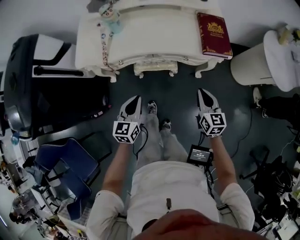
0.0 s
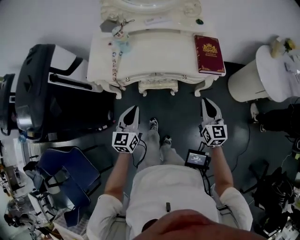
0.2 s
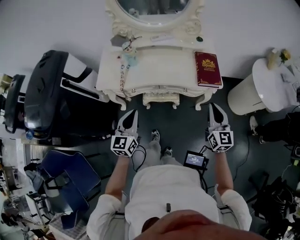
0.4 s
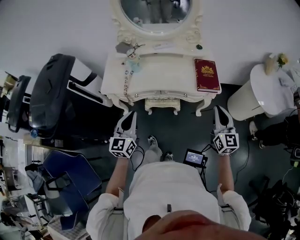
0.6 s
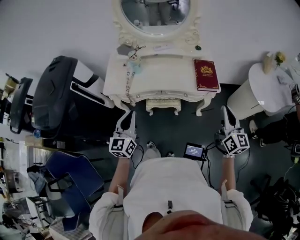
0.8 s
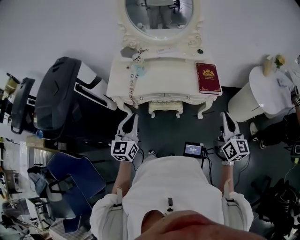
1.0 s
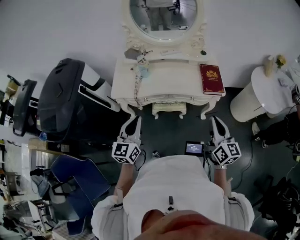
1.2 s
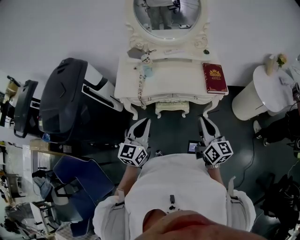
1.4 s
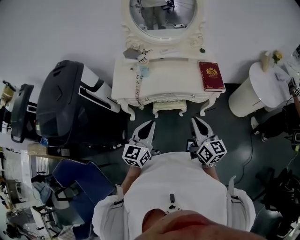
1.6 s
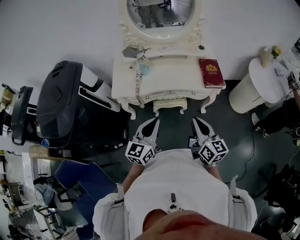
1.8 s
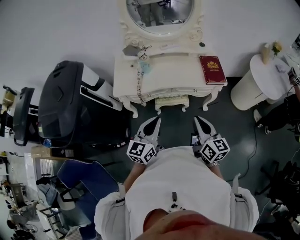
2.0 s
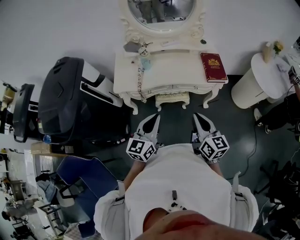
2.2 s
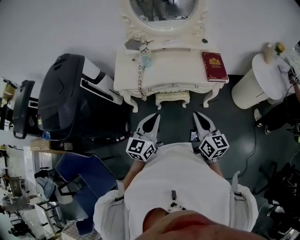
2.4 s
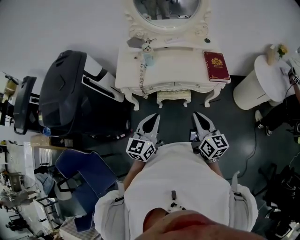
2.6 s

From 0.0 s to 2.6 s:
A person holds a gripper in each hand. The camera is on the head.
From 0.0 s to 1.2 s: The two grippers go roughly 30 cm upward. The right gripper turns by approximately 20 degrees.
From 1.2 s to 2.6 s: The right gripper heads to the left, covering approximately 15 cm; the left gripper changes place by some 5 cm.

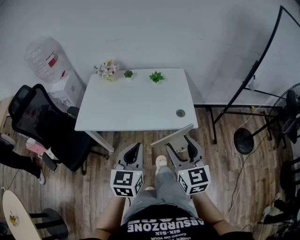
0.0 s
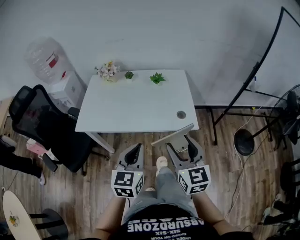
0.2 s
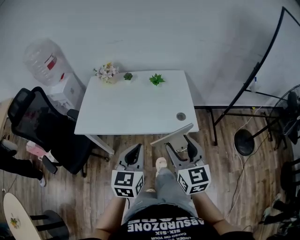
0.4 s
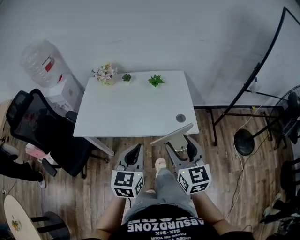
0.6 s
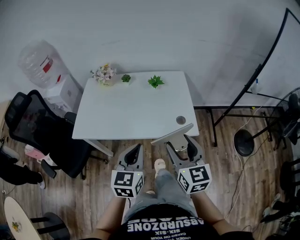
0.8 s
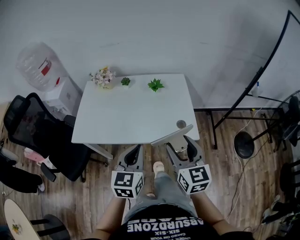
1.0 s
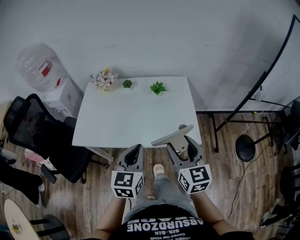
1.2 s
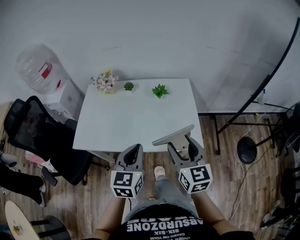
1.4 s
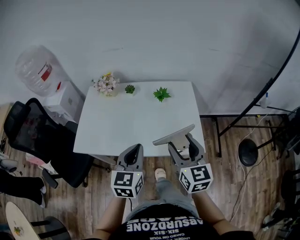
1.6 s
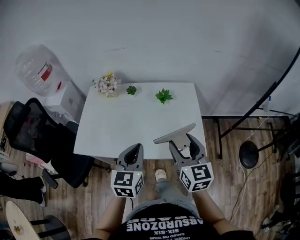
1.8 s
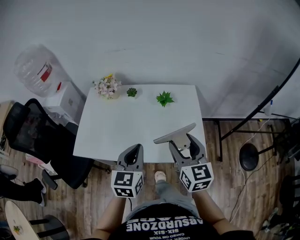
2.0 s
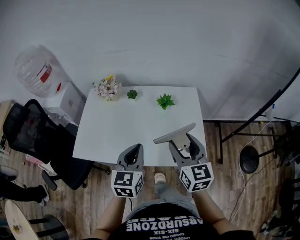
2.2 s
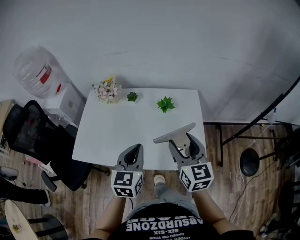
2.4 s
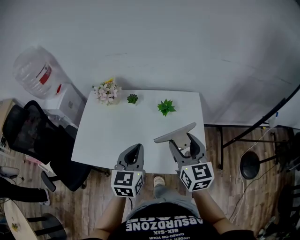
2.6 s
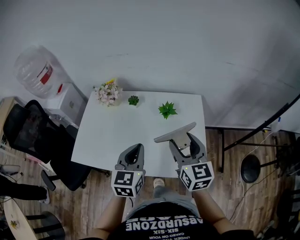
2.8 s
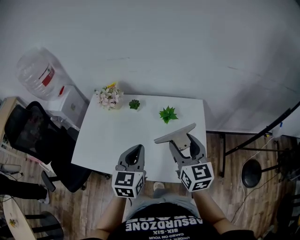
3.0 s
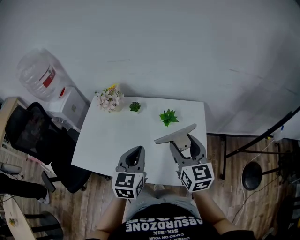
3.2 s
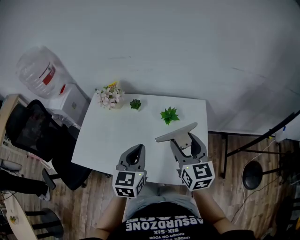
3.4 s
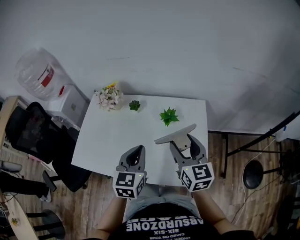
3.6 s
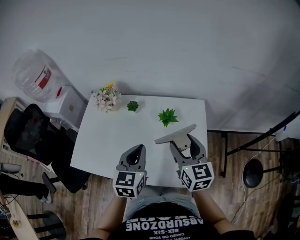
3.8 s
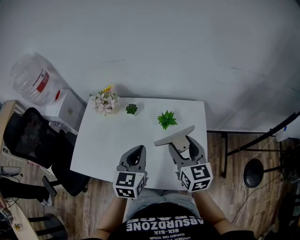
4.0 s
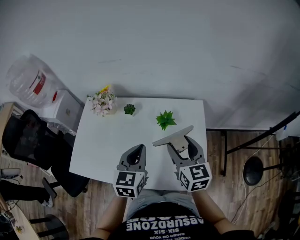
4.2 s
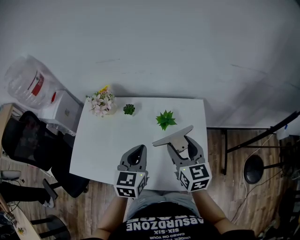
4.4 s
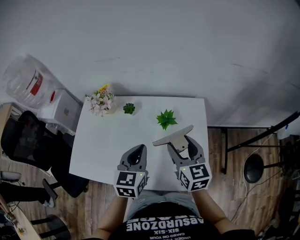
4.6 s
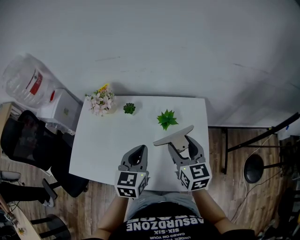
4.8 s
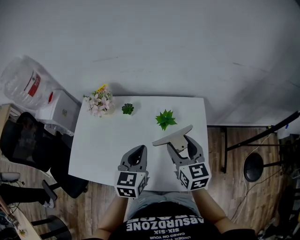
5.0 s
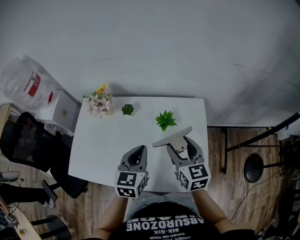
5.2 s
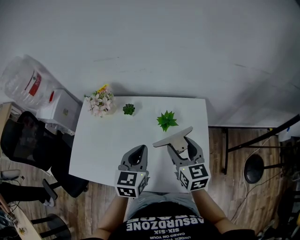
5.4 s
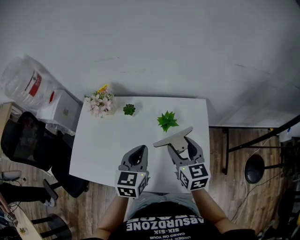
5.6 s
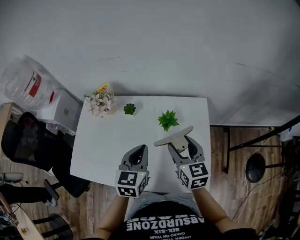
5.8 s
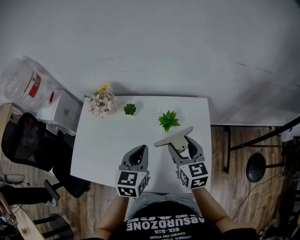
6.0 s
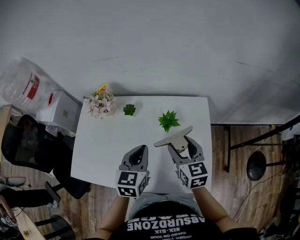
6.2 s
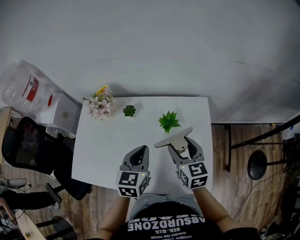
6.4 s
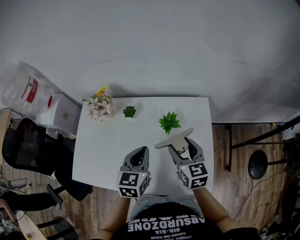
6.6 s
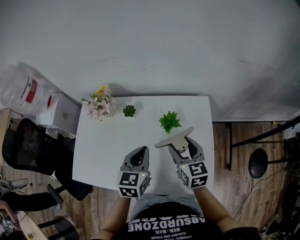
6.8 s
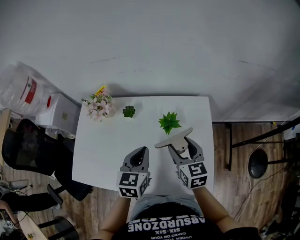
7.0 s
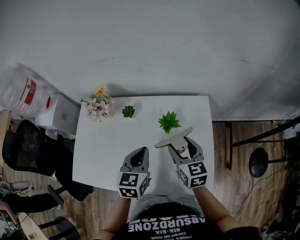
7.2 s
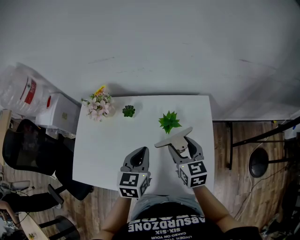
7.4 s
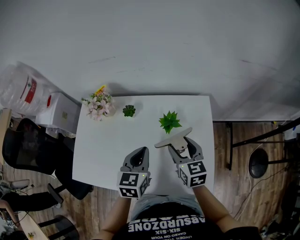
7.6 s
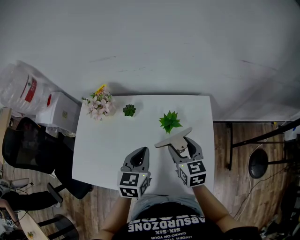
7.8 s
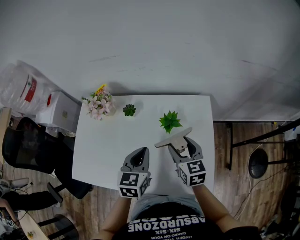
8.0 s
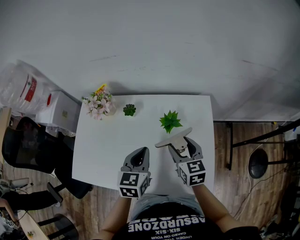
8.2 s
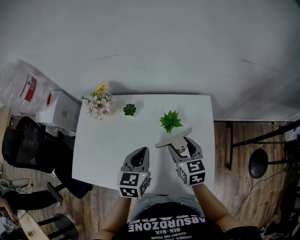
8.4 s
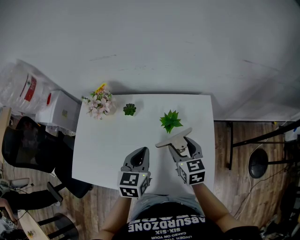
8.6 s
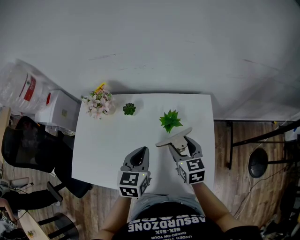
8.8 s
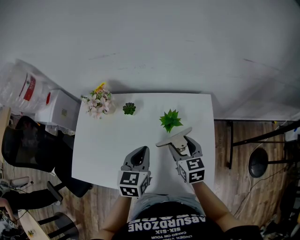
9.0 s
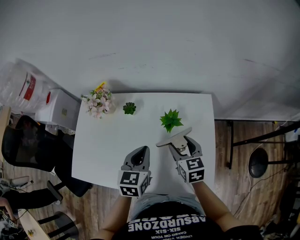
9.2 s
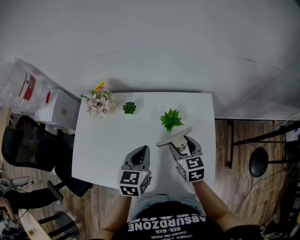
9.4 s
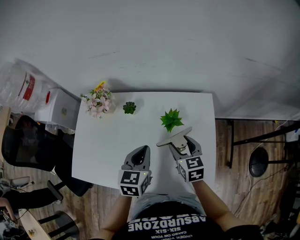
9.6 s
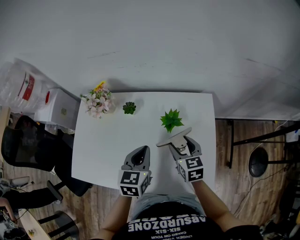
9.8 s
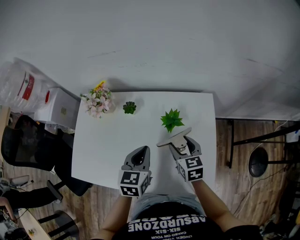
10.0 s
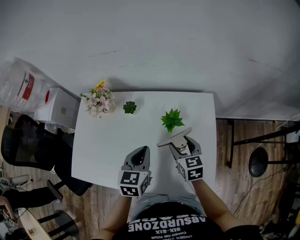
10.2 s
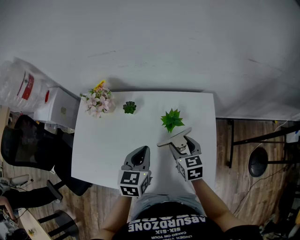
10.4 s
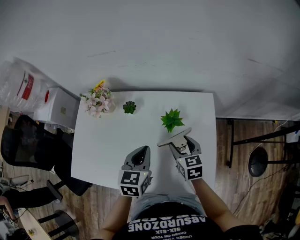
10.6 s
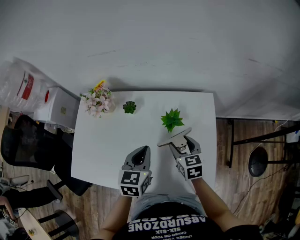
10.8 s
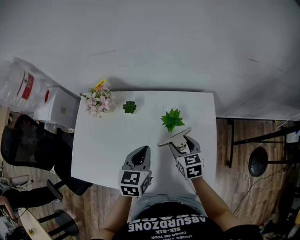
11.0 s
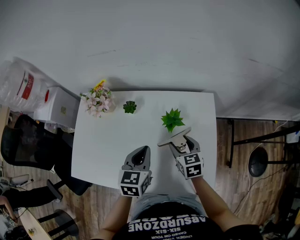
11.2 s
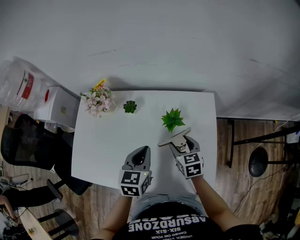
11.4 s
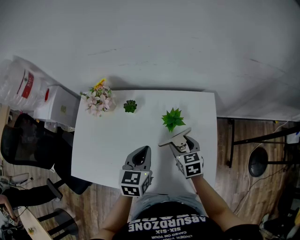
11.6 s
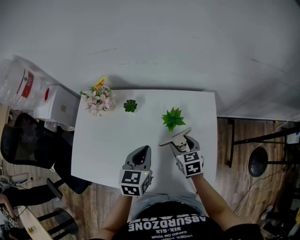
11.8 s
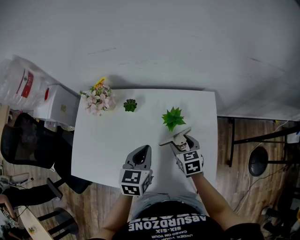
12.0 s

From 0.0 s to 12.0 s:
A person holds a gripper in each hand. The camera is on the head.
From 0.0 s to 1.6 s: The grippers both shift forward by roughly 20 cm.
From 1.6 s to 3.0 s: Both grippers move forward, approximately 15 cm.
From 3.0 s to 4.4 s: Both grippers move forward, about 5 cm.
From 4.4 s to 6.0 s: The right gripper moves some 5 cm.
From 6.0 s to 7.6 s: There are only small adjustments of the grippers.
From 7.6 s to 9.0 s: There are only small adjustments of the grippers.
From 9.0 s to 10.4 s: The grippers stay close to where they were, moving slightly.
From 10.4 s to 12.0 s: The grippers make only small movements.

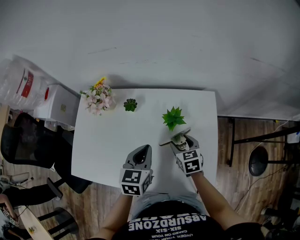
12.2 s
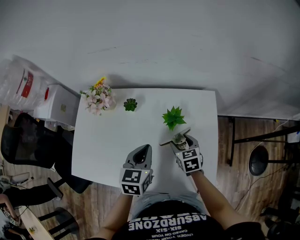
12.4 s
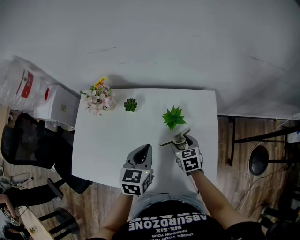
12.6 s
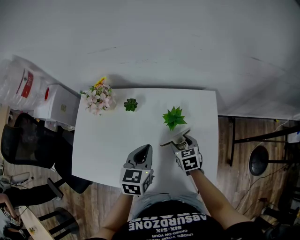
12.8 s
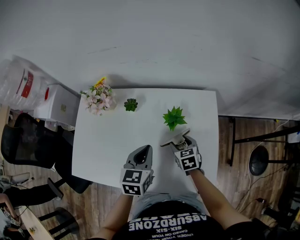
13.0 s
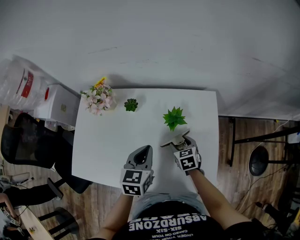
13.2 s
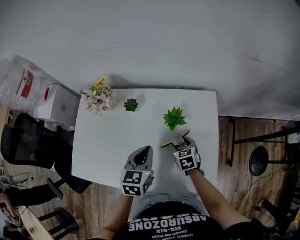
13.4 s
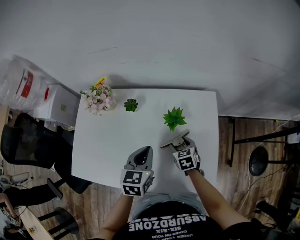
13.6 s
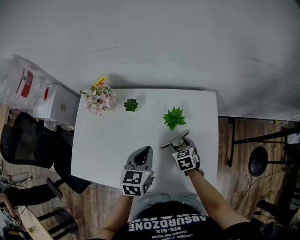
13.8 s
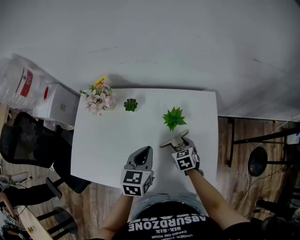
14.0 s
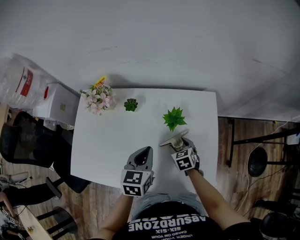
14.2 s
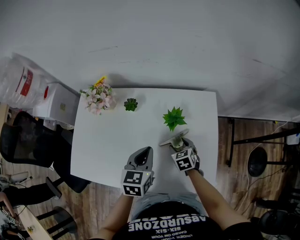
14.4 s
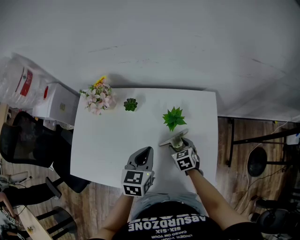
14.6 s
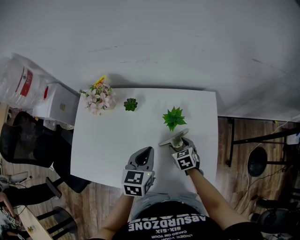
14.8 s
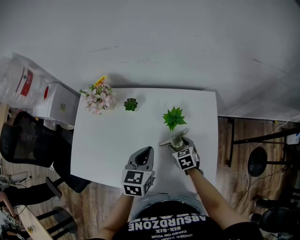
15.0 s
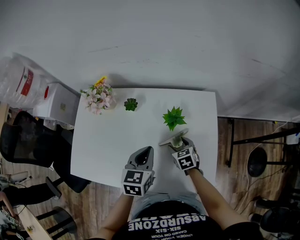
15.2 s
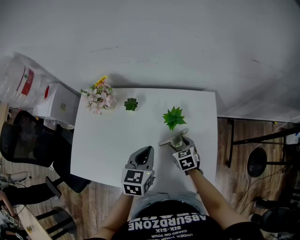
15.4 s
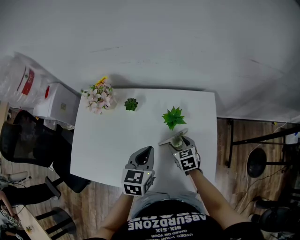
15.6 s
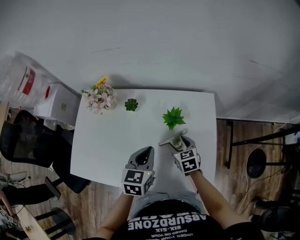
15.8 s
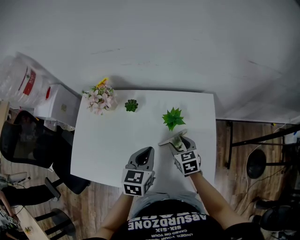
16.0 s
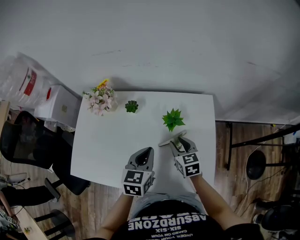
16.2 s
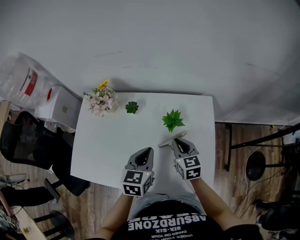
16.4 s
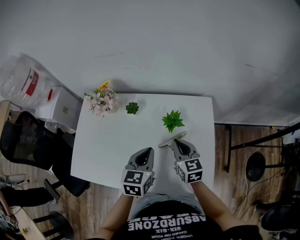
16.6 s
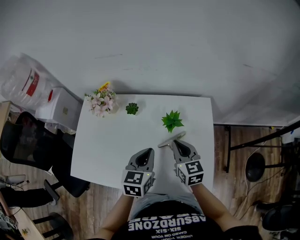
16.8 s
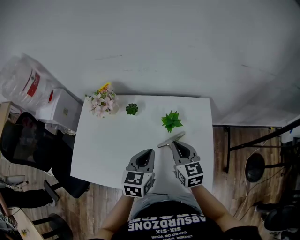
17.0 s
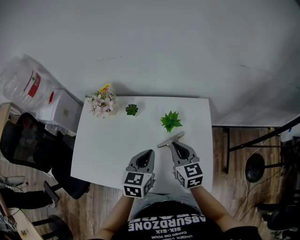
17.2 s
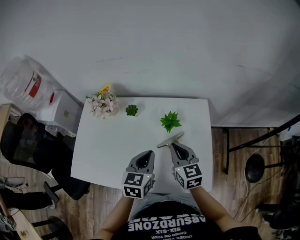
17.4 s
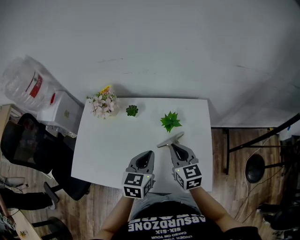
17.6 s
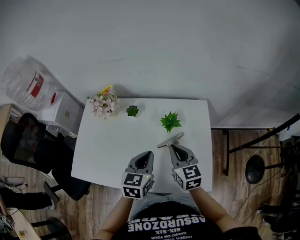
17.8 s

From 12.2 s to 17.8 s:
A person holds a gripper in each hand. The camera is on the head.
From 12.2 s to 13.6 s: The right gripper goes some 5 cm downward.
From 13.6 s to 15.0 s: There are only small adjustments of the grippers.
From 15.0 s to 16.4 s: The right gripper travels upward by some 15 cm, turns by some 20 degrees, and closes.
From 16.4 s to 17.8 s: The right gripper is displaced upward and backward by roughly 10 cm.

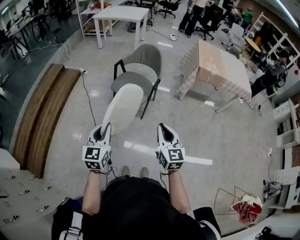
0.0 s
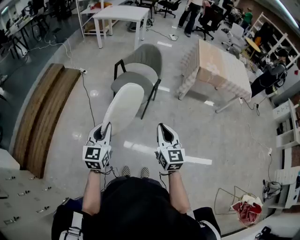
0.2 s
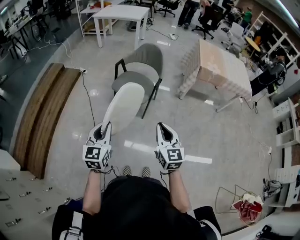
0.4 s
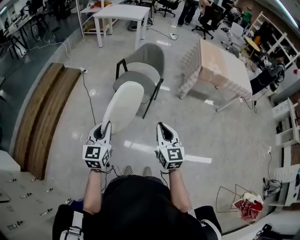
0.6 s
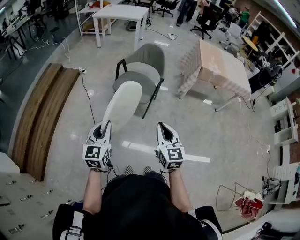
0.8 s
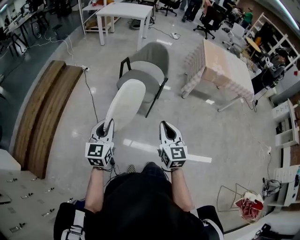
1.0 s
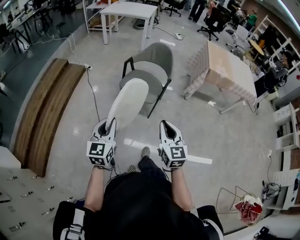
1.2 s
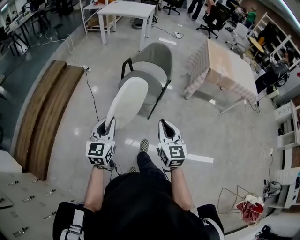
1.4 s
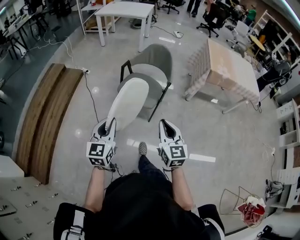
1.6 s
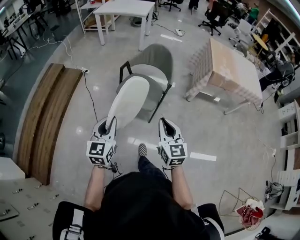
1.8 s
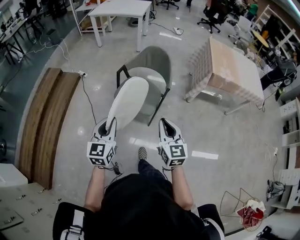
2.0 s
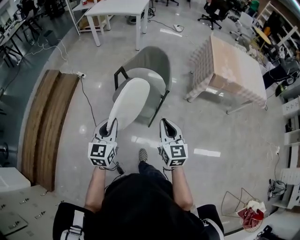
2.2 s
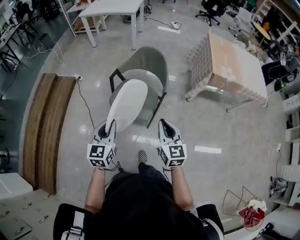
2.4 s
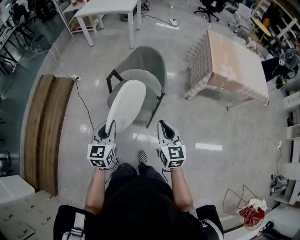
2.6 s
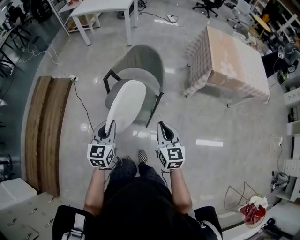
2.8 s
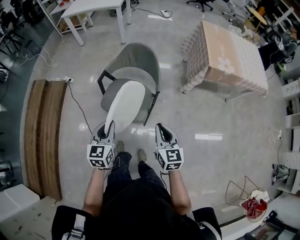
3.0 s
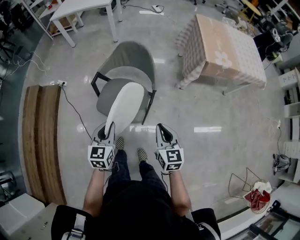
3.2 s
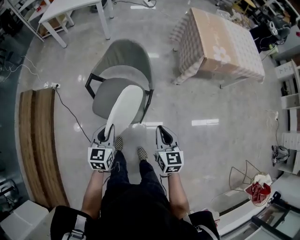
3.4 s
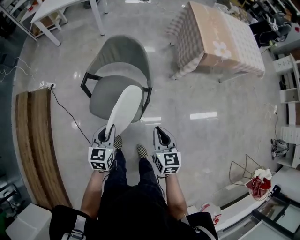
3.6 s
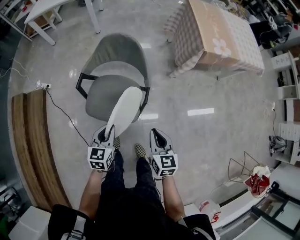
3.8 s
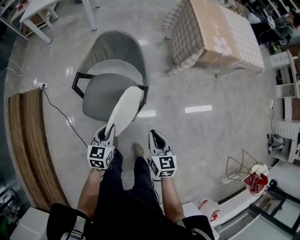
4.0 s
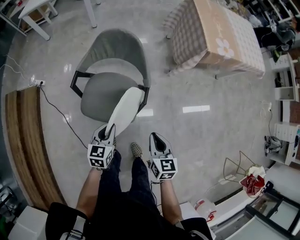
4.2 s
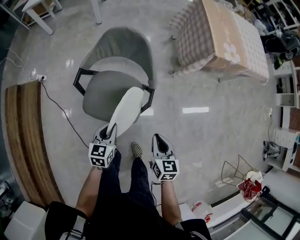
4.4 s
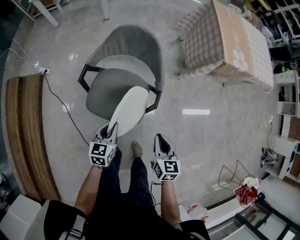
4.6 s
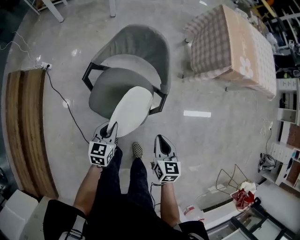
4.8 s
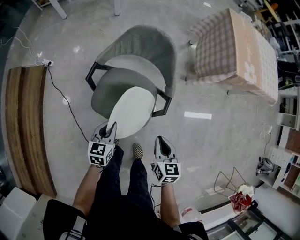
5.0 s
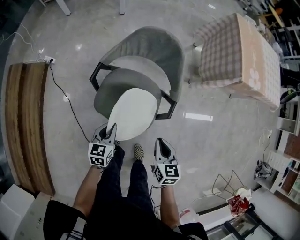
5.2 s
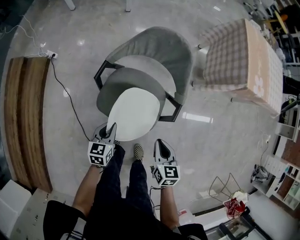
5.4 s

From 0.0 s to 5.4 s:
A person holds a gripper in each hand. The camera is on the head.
From 0.0 s to 1.4 s: The two grippers go approximately 10 cm to the left and forward.
From 1.4 s to 2.8 s: The grippers both shift forward by roughly 30 cm.
From 2.8 s to 4.0 s: The grippers both shift downward and forward by roughly 20 cm. The right gripper swivels approximately 20 degrees; the left gripper changes its angle by roughly 20 degrees.
From 4.0 s to 5.4 s: The right gripper moves to the left, downward and forward, some 15 cm; the left gripper goes some 20 cm to the left and downward.
